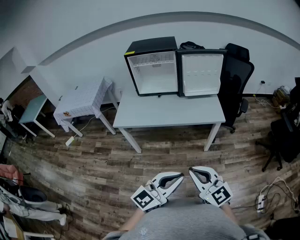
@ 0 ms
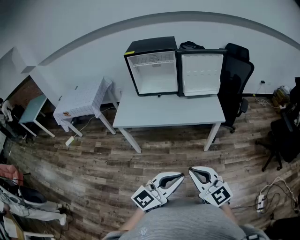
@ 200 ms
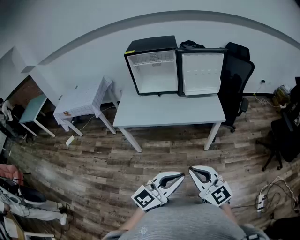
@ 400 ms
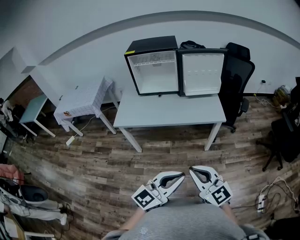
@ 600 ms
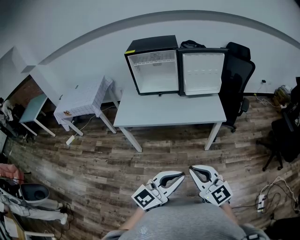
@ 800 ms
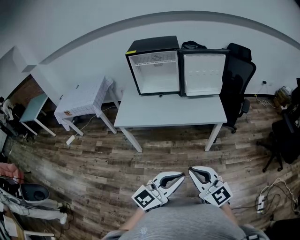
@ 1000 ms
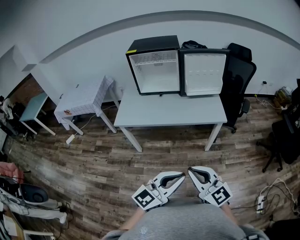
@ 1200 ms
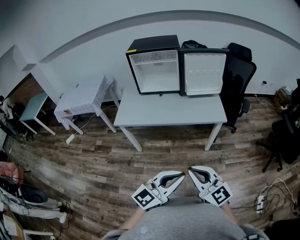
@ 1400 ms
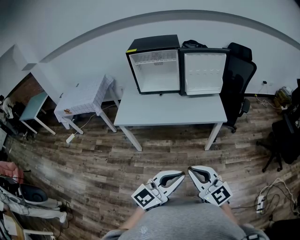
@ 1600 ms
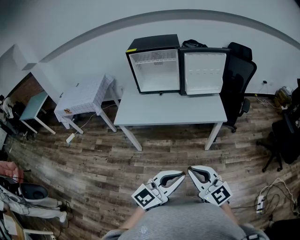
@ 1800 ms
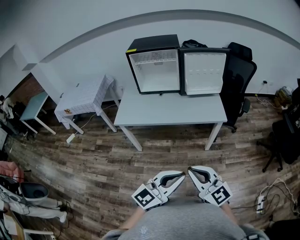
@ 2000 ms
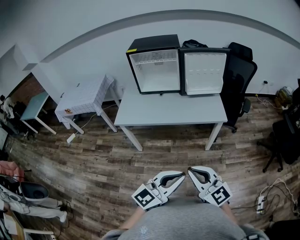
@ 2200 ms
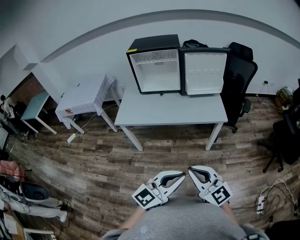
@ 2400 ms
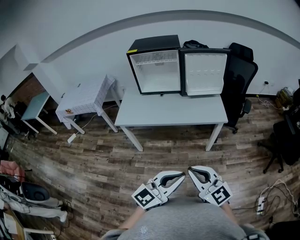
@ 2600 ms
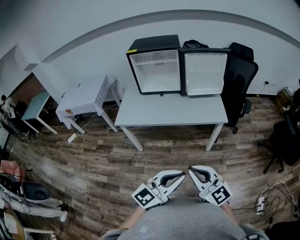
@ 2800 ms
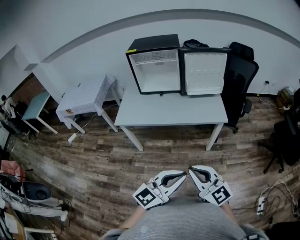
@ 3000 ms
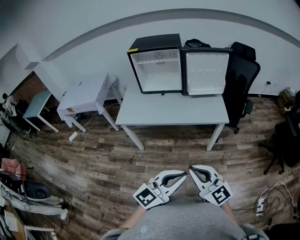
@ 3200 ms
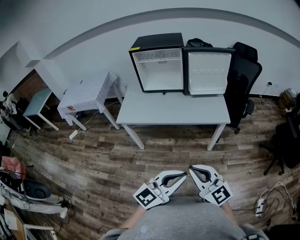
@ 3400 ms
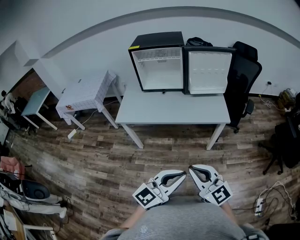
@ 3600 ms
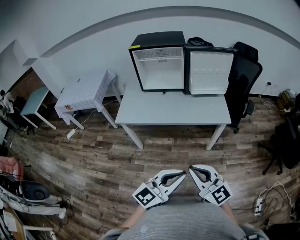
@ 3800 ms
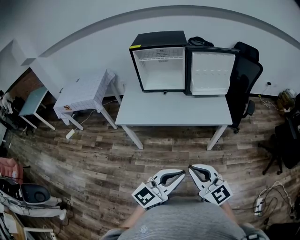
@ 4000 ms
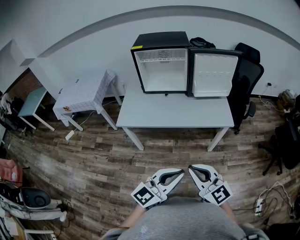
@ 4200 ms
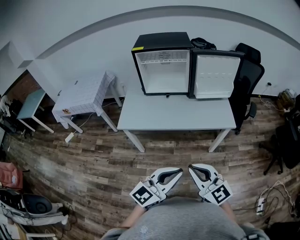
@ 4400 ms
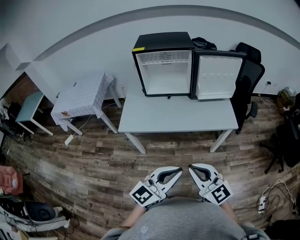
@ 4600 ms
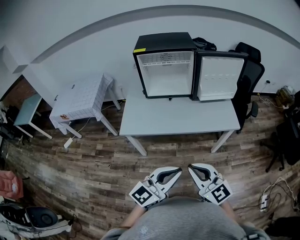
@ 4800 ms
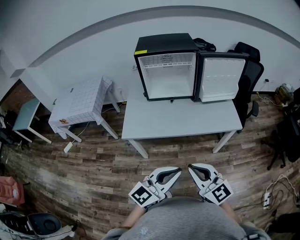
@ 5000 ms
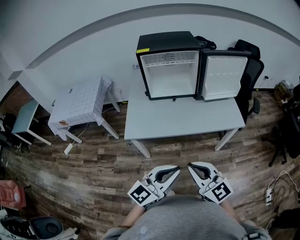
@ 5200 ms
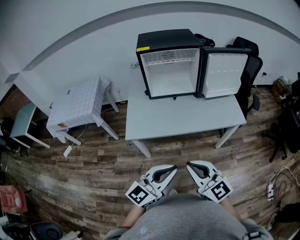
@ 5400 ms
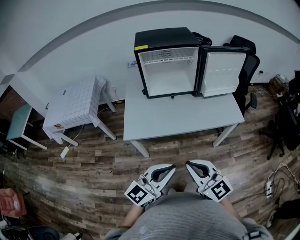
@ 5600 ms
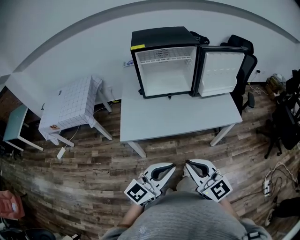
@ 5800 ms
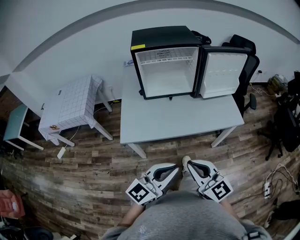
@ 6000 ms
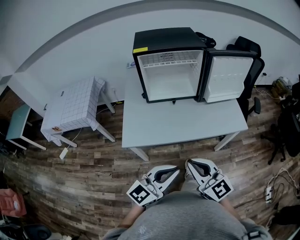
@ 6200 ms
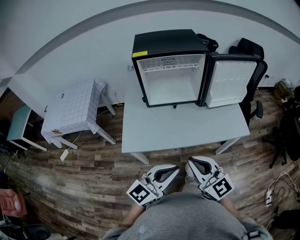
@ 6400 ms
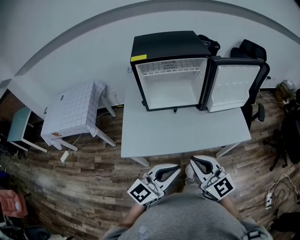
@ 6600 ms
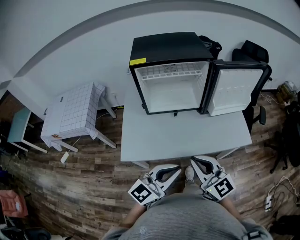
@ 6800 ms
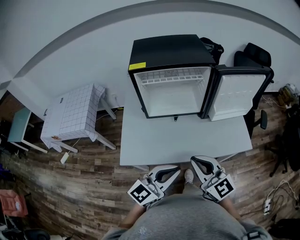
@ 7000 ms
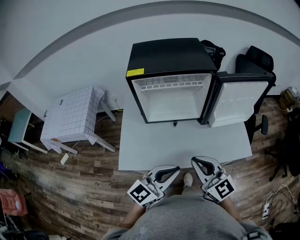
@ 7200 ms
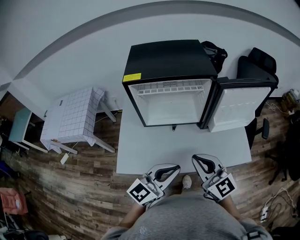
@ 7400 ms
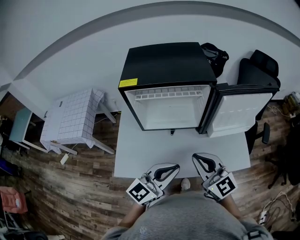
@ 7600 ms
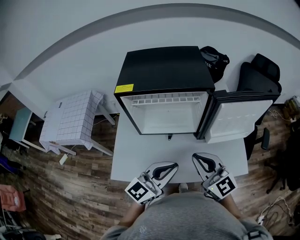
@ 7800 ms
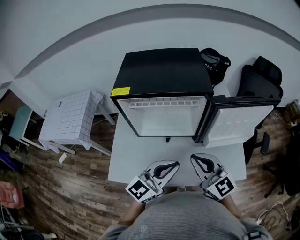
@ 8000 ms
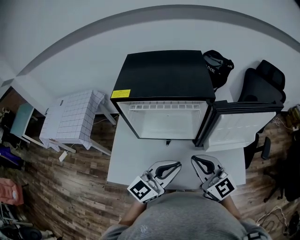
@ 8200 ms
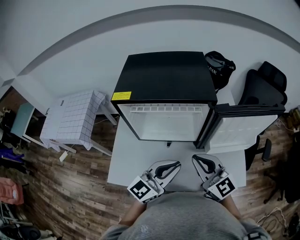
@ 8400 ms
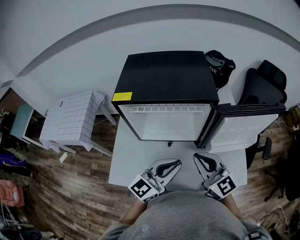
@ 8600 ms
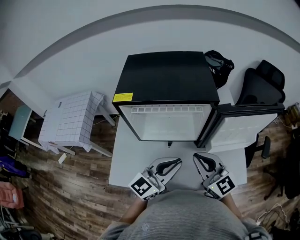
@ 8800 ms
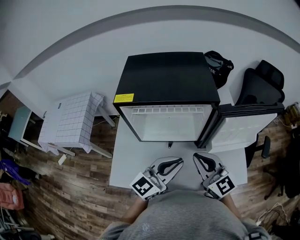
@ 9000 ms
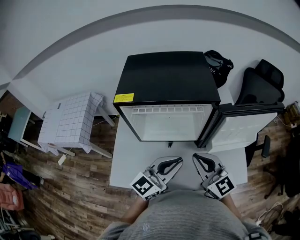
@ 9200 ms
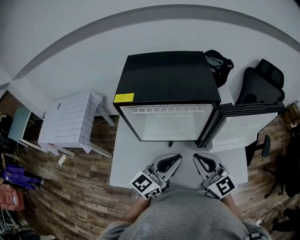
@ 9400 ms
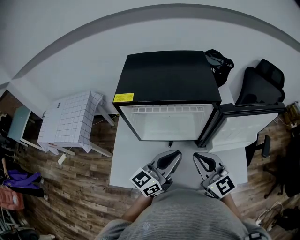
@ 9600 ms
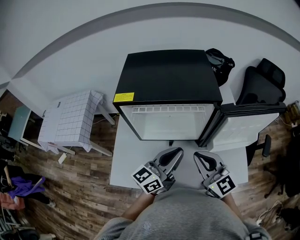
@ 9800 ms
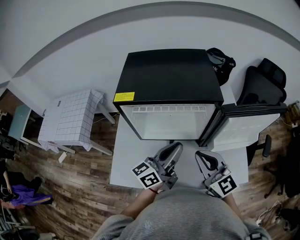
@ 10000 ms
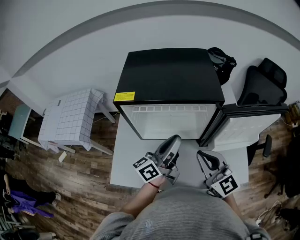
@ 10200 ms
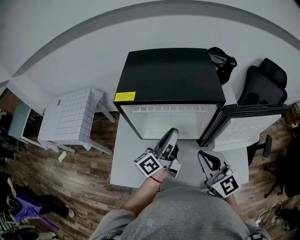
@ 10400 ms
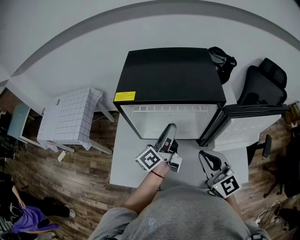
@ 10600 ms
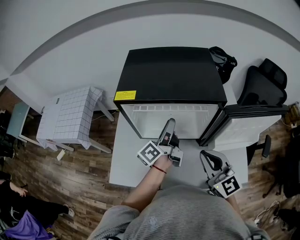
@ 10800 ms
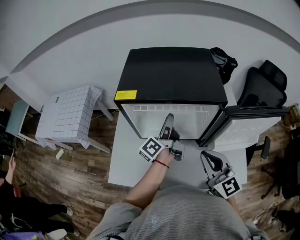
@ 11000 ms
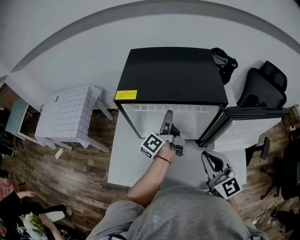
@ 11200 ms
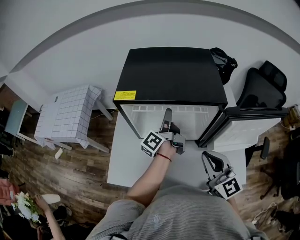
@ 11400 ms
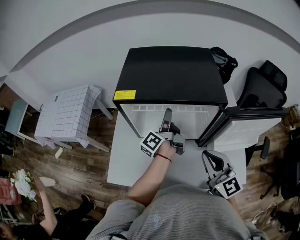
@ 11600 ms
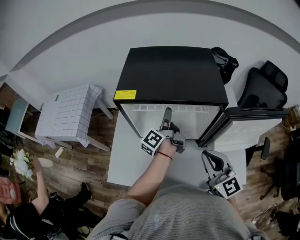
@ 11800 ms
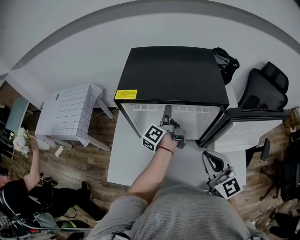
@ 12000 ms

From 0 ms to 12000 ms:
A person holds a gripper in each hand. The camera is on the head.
From 0 ms to 3000 ms: The grippers move only a little.
From 3000 ms to 4400 ms: The grippers both shift to the left and forward by approximately 15 cm.
From 4400 ms to 6000 ms: Both grippers move to the left and forward, roughly 20 cm.
From 6000 ms to 7600 ms: Both grippers move forward, some 30 cm.
From 7600 ms to 9000 ms: The grippers both shift forward by about 10 cm.
From 9000 ms to 10400 ms: The left gripper is displaced forward by approximately 10 cm, and rolls counterclockwise, seen from behind, by approximately 50 degrees.
From 10400 ms to 12000 ms: The left gripper goes approximately 15 cm forward and downward, turns by roughly 30 degrees, and opens its fingers.

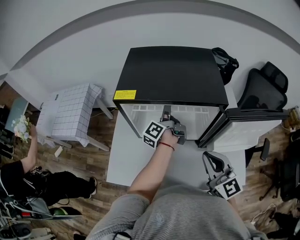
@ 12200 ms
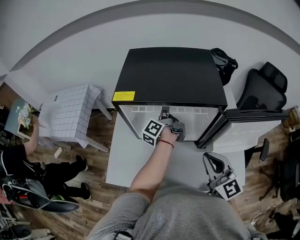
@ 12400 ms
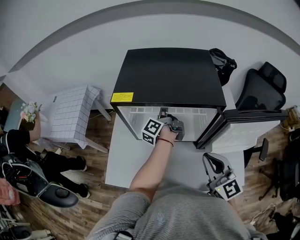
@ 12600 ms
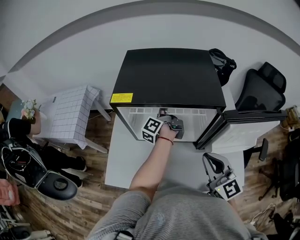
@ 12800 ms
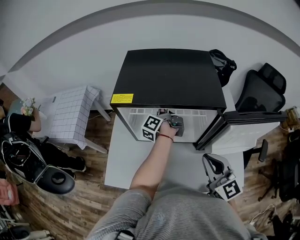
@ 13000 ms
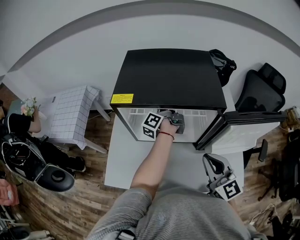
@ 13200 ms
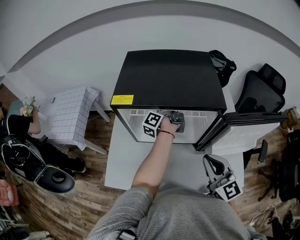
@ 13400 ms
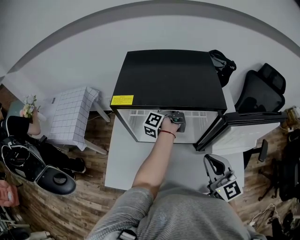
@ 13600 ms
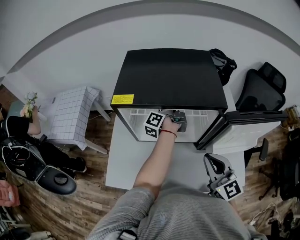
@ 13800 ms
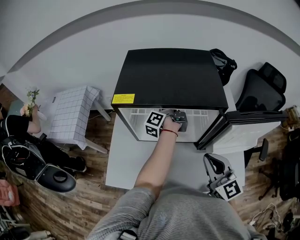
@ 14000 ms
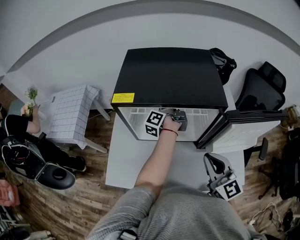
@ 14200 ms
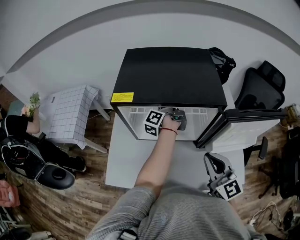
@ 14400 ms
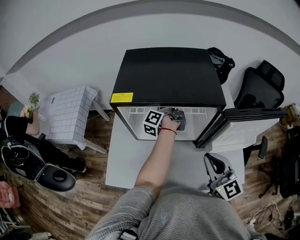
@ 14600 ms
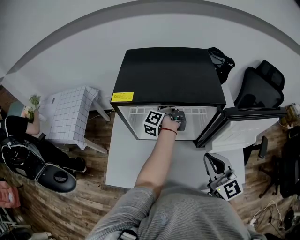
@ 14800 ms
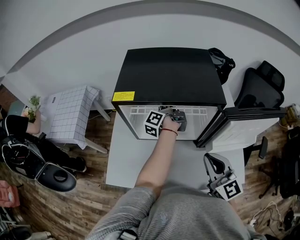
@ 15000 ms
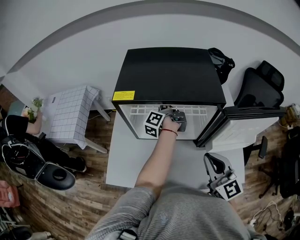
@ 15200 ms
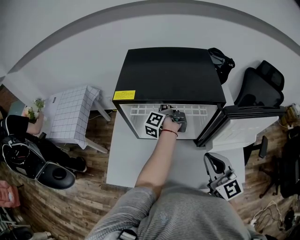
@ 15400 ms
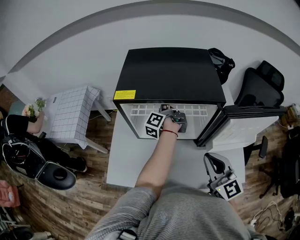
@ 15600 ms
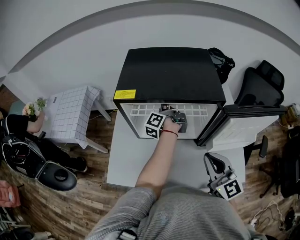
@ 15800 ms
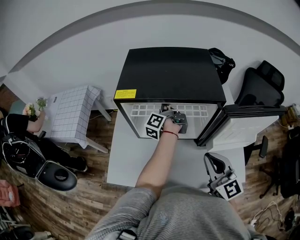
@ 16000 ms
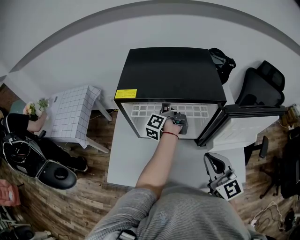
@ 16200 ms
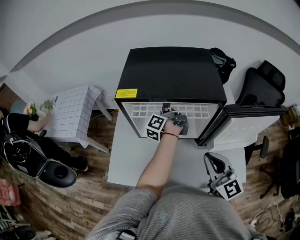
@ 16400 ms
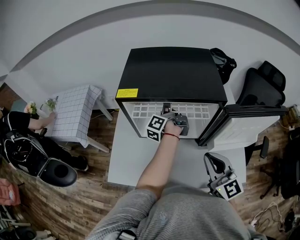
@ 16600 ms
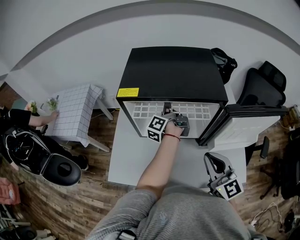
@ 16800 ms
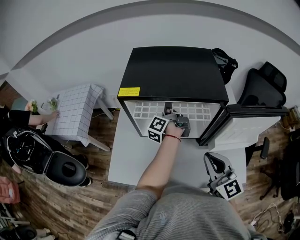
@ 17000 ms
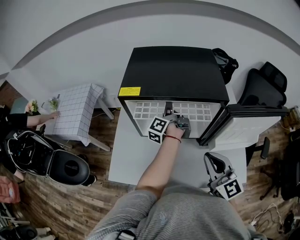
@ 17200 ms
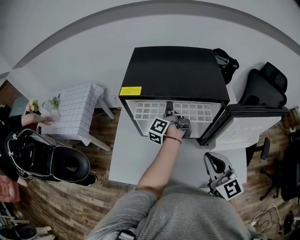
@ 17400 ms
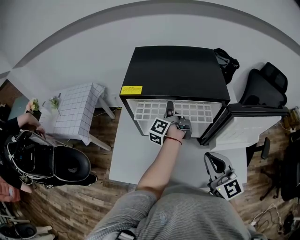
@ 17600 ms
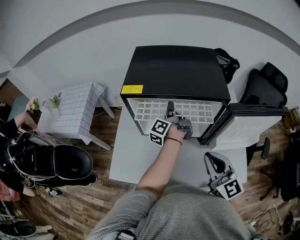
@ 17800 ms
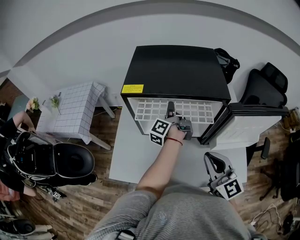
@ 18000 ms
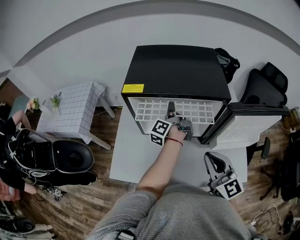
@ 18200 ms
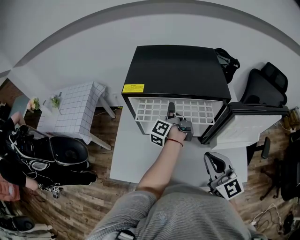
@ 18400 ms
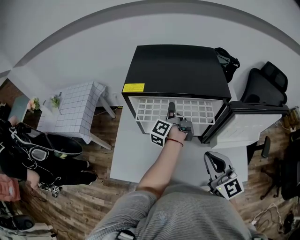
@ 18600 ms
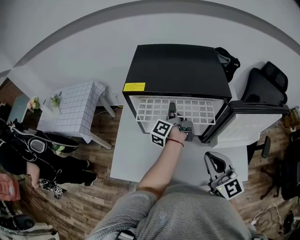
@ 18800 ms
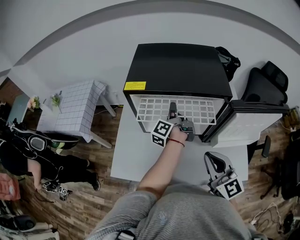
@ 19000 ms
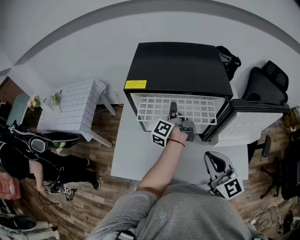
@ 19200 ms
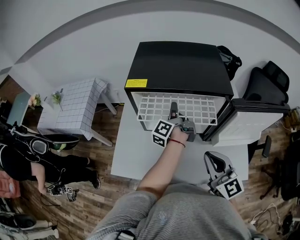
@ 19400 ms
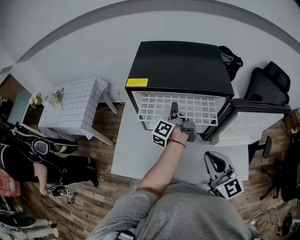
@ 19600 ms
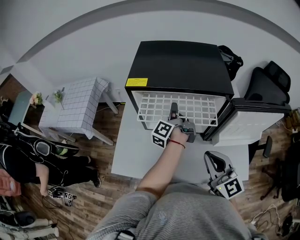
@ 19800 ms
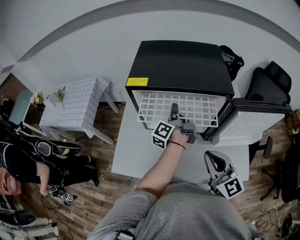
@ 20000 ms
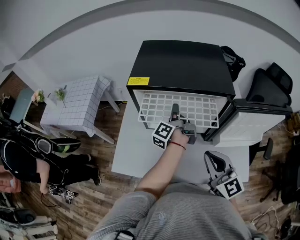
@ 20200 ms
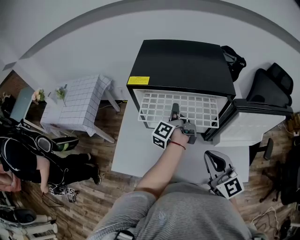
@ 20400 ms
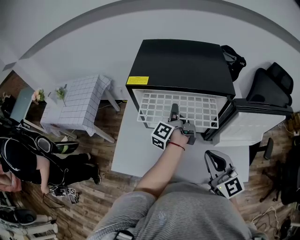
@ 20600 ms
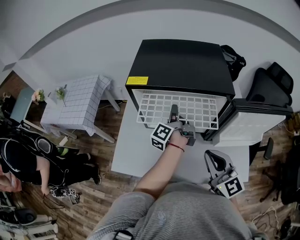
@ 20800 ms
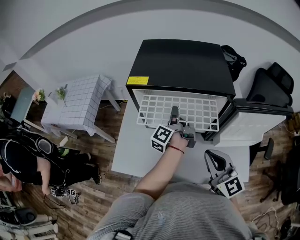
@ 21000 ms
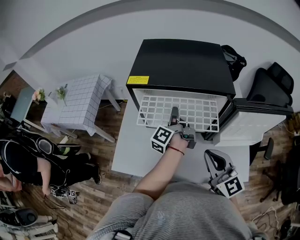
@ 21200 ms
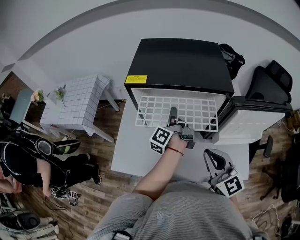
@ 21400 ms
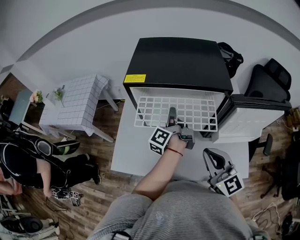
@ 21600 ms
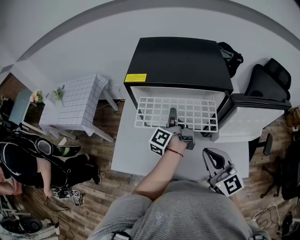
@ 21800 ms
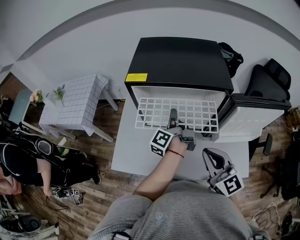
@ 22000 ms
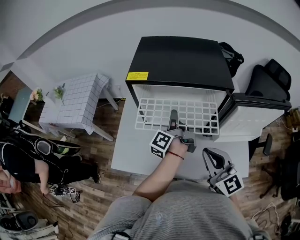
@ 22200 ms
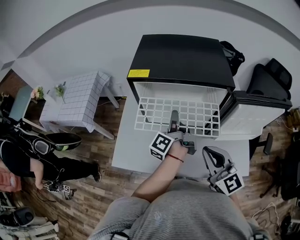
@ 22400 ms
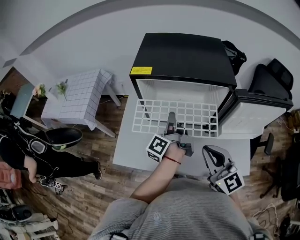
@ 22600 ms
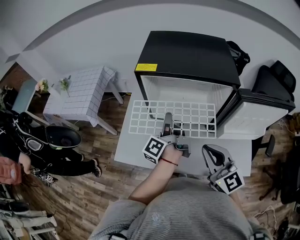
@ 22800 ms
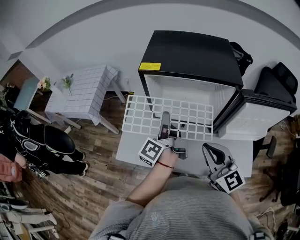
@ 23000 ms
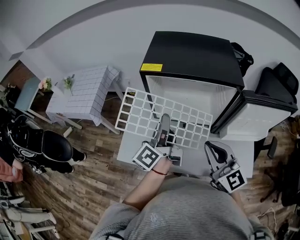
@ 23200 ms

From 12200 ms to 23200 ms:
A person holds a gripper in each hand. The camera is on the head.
From 12200 ms to 13800 ms: The left gripper heads forward, covering about 5 cm, and closes up.
From 13800 ms to 17000 ms: There are only small adjustments of the grippers.
From 17000 ms to 18400 ms: The grippers move only a little.
From 18400 ms to 20000 ms: The grippers make only small movements.
From 20000 ms to 21600 ms: There are only small adjustments of the grippers.
From 21600 ms to 23200 ms: The left gripper travels to the left, backward and upward by about 15 cm, and changes its angle by some 30 degrees.

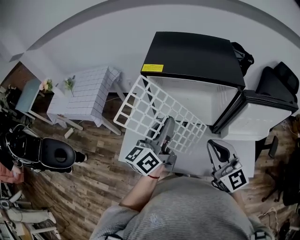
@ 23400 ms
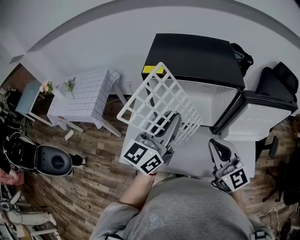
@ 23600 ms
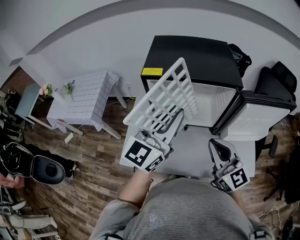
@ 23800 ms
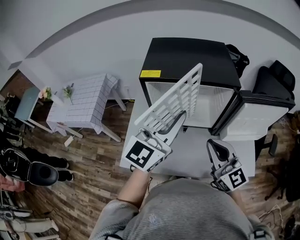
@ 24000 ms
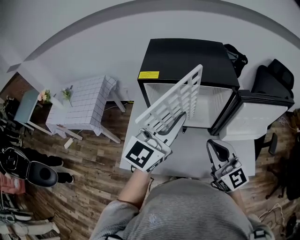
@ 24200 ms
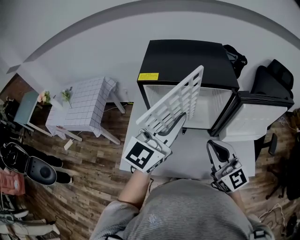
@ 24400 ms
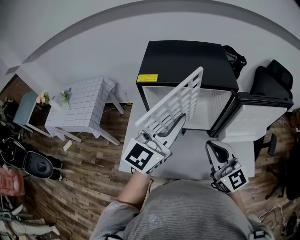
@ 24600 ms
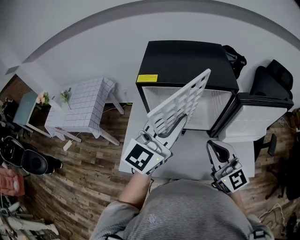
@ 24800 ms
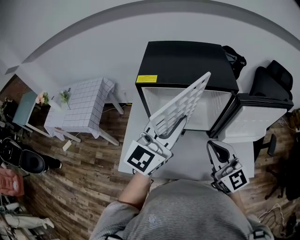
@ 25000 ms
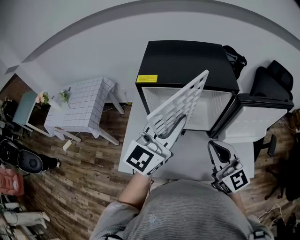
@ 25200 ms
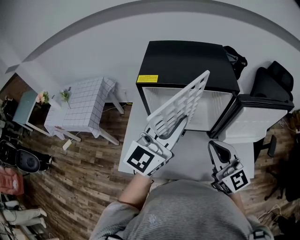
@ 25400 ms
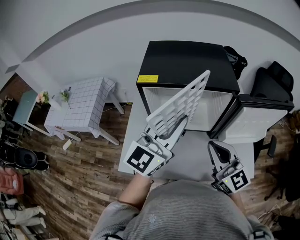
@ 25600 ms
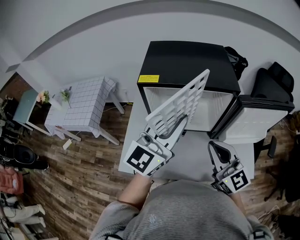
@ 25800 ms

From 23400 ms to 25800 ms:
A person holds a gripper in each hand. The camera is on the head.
From 23400 ms to 24600 ms: The left gripper goes some 10 cm upward and to the right, and twists approximately 40 degrees clockwise, seen from behind.
From 24600 ms to 25800 ms: Both grippers stay put.
